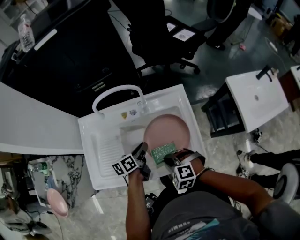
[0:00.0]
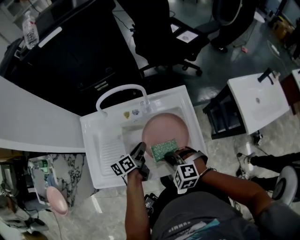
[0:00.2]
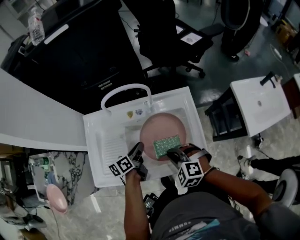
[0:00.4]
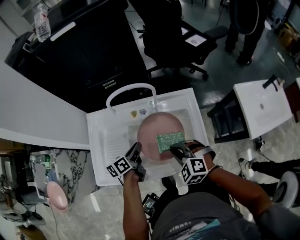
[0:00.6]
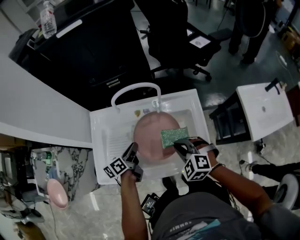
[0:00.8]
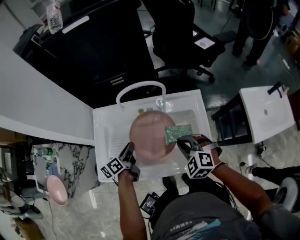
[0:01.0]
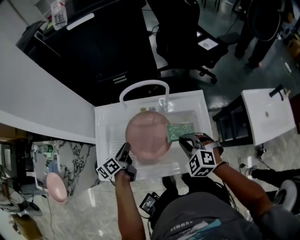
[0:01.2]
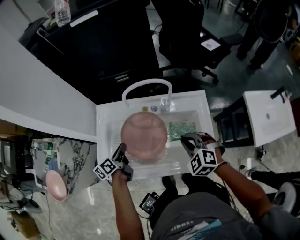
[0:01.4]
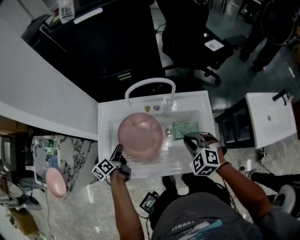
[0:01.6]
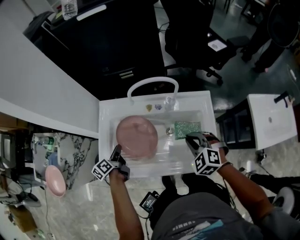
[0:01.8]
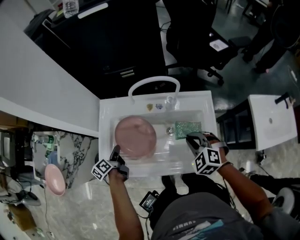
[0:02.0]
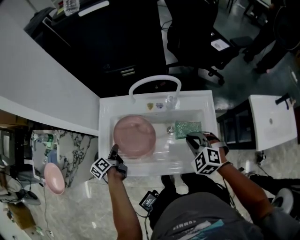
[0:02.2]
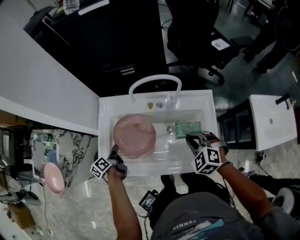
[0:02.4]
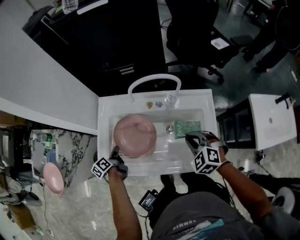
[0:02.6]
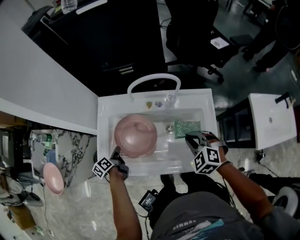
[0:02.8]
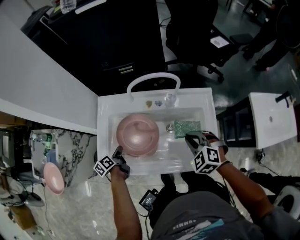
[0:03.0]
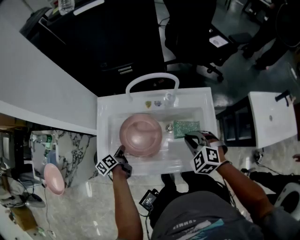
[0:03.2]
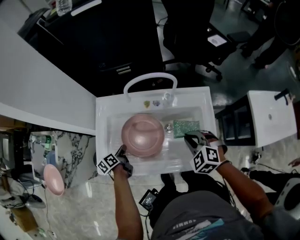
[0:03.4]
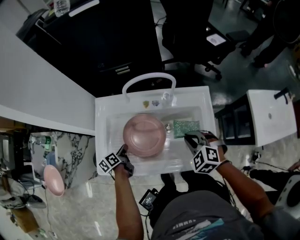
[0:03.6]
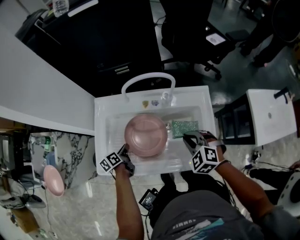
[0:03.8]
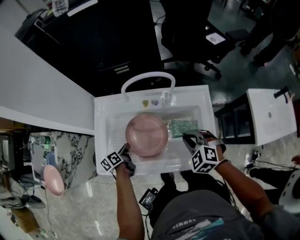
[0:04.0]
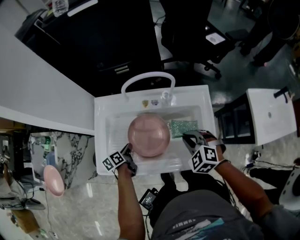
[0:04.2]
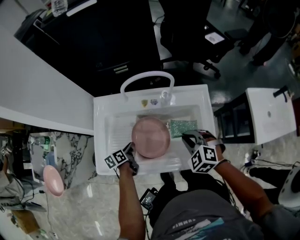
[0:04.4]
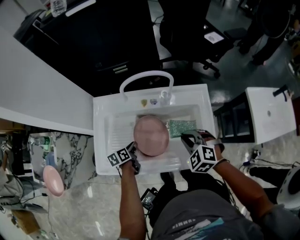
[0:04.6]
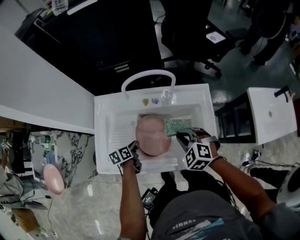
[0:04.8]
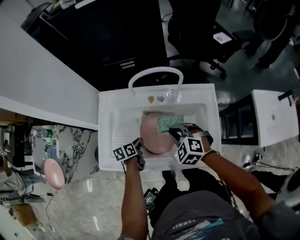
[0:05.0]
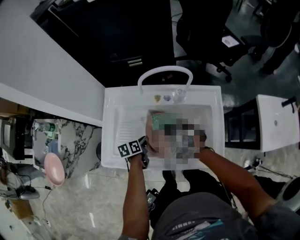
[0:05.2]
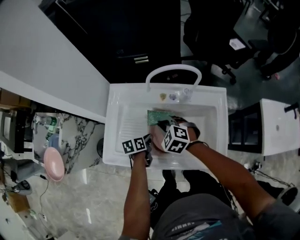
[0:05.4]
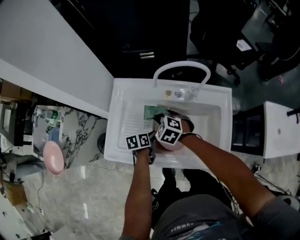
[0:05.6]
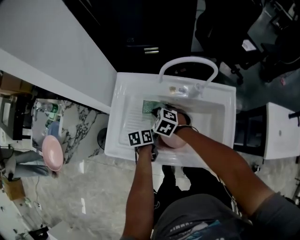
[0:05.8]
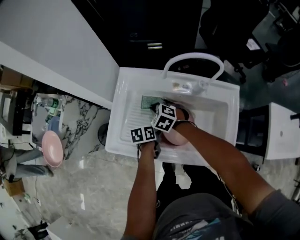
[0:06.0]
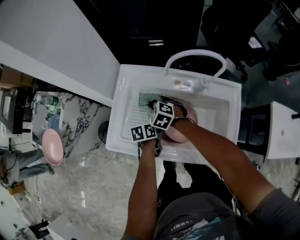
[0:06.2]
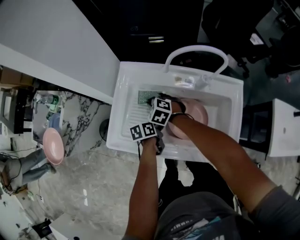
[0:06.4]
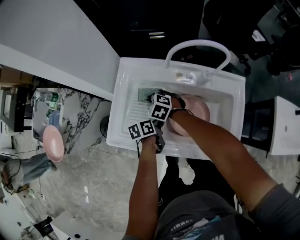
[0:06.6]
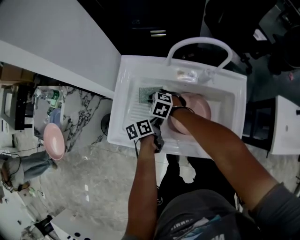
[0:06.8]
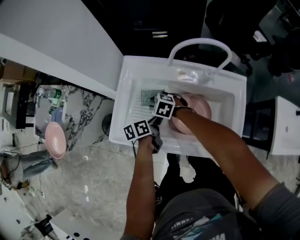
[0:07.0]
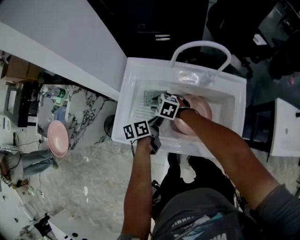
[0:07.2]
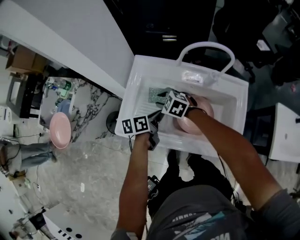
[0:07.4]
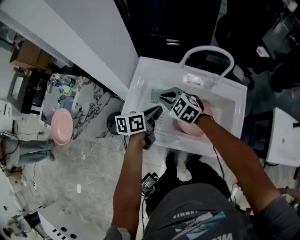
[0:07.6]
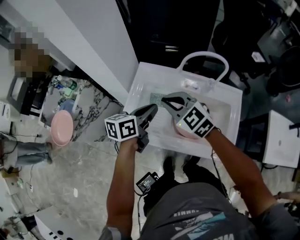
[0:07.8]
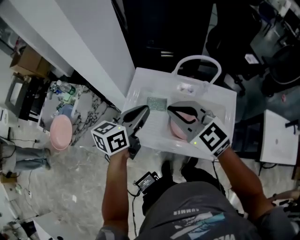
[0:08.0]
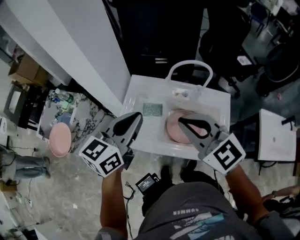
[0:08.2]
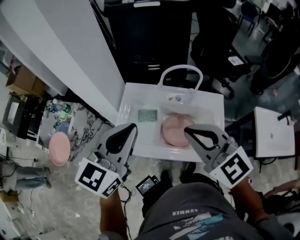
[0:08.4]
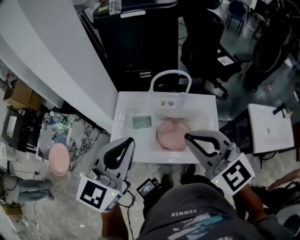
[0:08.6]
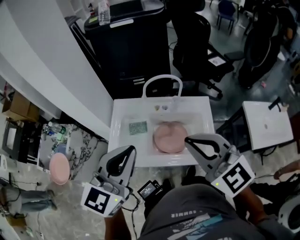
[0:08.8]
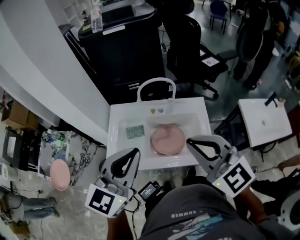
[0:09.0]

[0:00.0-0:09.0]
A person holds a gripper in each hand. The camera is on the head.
0:00.0 to 0:01.6: The right gripper is displaced forward and upward by about 15 cm; the left gripper shifts some 25 cm to the left, and rotates some 30 degrees.
0:01.6 to 0:03.0: The left gripper travels downward by roughly 10 cm.
0:03.0 to 0:04.4: The left gripper shifts about 10 cm to the right.
0:04.4 to 0:06.0: The right gripper moves to the left and forward, about 30 cm.
0:06.0 to 0:07.6: The right gripper goes some 10 cm upward, and opens, then closes again; the left gripper is displaced upward by some 15 cm, and turns by about 20 degrees.
0:07.6 to 0:09.0: The right gripper shifts about 40 cm upward, backward and to the right, and tips its fingers upward by about 30 degrees. Meanwhile the left gripper shifts approximately 35 cm upward and backward, and rolls clockwise, seen from behind, by roughly 60 degrees.

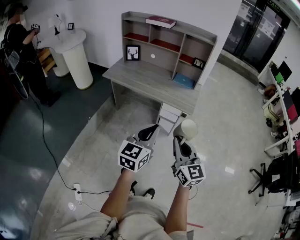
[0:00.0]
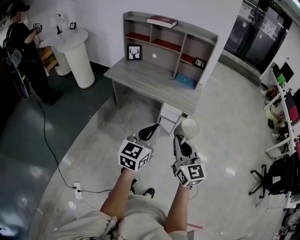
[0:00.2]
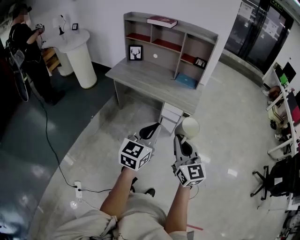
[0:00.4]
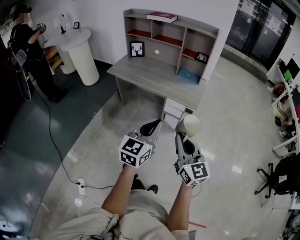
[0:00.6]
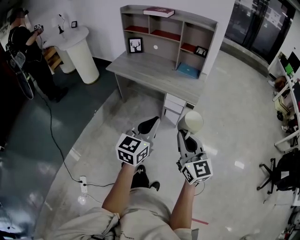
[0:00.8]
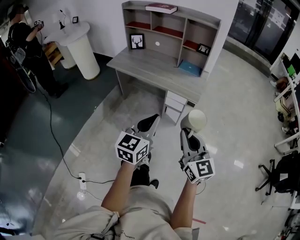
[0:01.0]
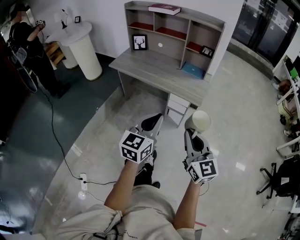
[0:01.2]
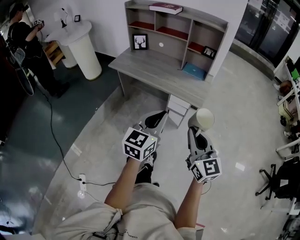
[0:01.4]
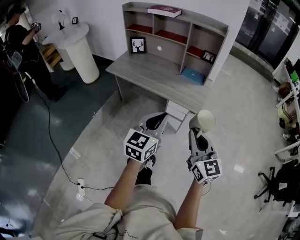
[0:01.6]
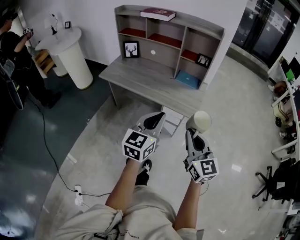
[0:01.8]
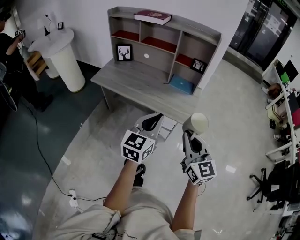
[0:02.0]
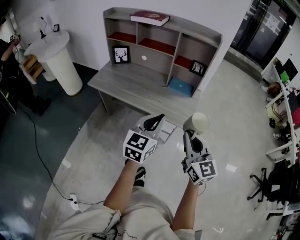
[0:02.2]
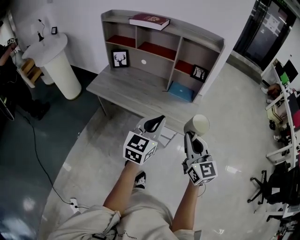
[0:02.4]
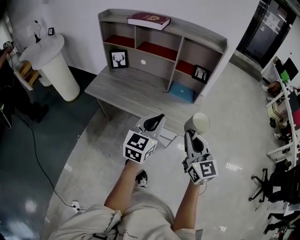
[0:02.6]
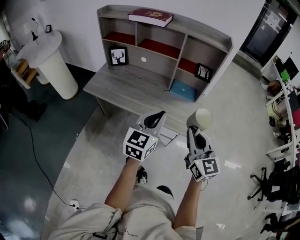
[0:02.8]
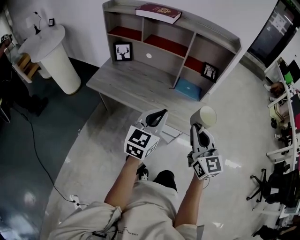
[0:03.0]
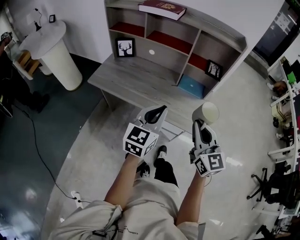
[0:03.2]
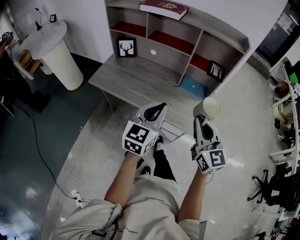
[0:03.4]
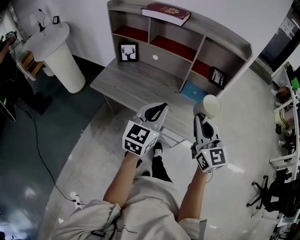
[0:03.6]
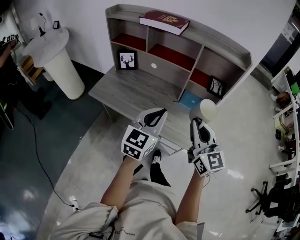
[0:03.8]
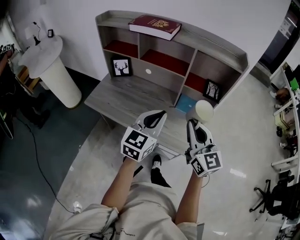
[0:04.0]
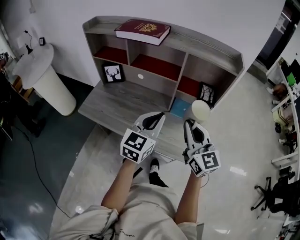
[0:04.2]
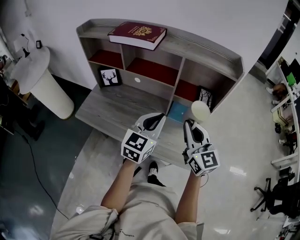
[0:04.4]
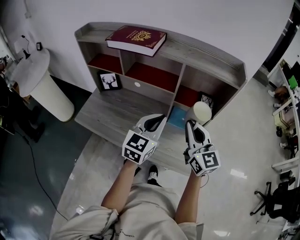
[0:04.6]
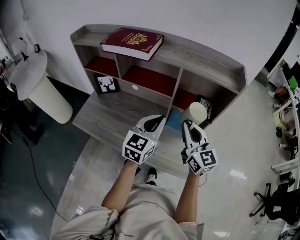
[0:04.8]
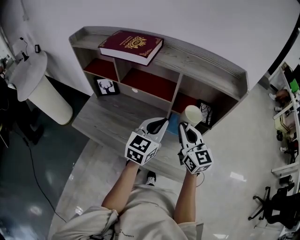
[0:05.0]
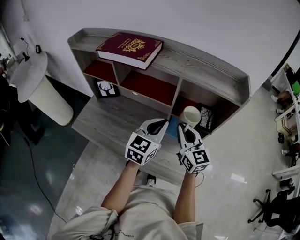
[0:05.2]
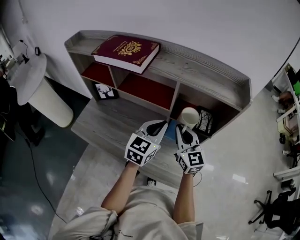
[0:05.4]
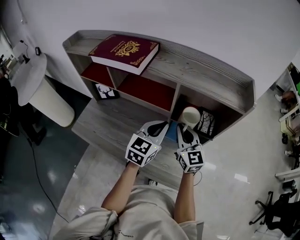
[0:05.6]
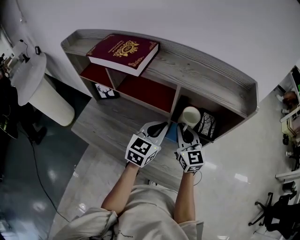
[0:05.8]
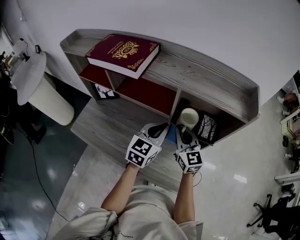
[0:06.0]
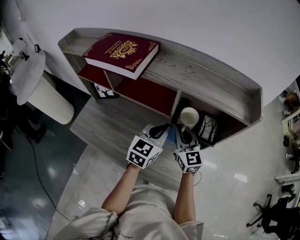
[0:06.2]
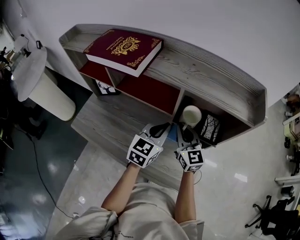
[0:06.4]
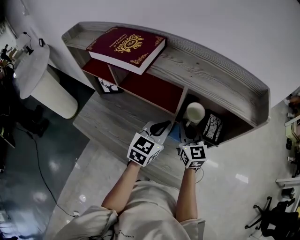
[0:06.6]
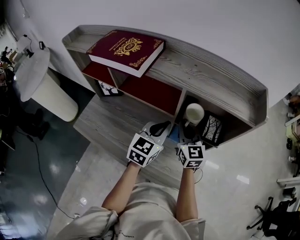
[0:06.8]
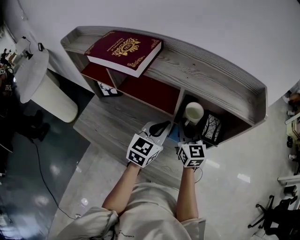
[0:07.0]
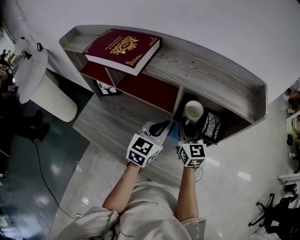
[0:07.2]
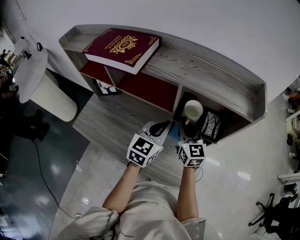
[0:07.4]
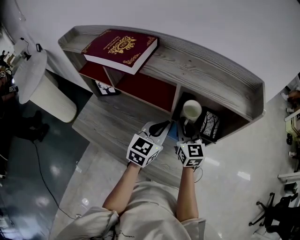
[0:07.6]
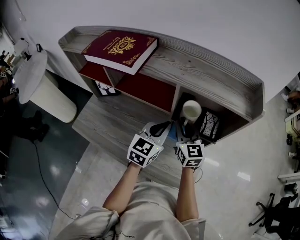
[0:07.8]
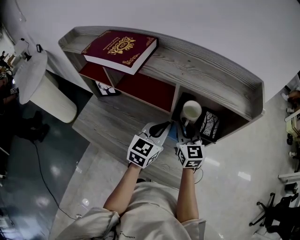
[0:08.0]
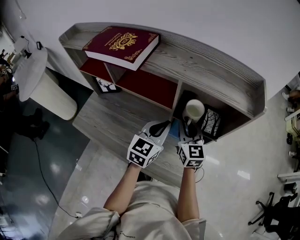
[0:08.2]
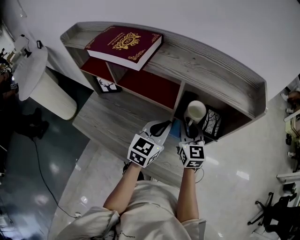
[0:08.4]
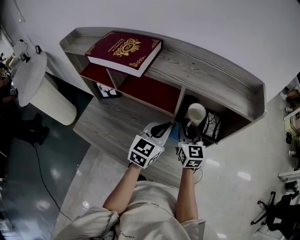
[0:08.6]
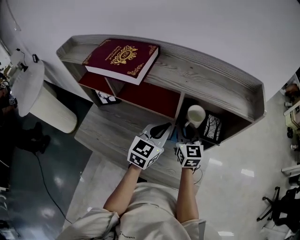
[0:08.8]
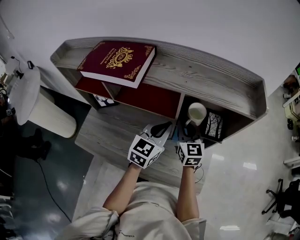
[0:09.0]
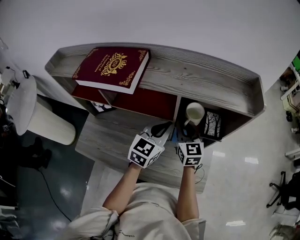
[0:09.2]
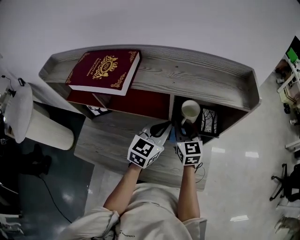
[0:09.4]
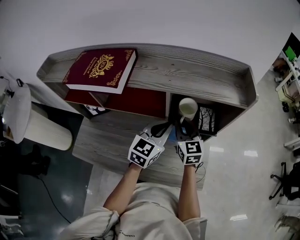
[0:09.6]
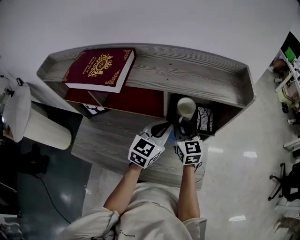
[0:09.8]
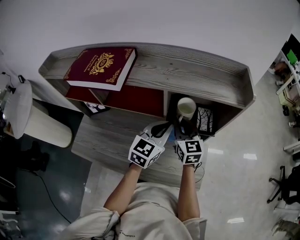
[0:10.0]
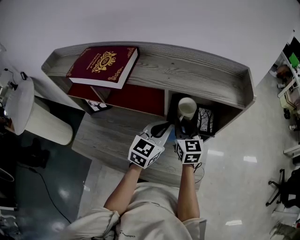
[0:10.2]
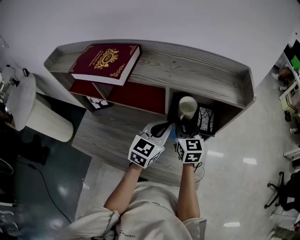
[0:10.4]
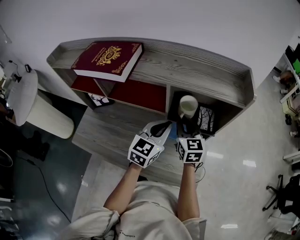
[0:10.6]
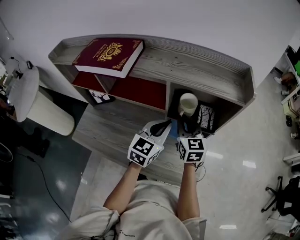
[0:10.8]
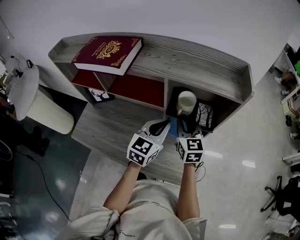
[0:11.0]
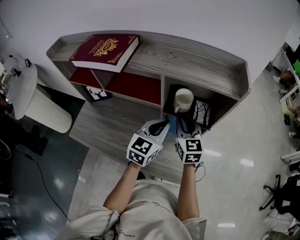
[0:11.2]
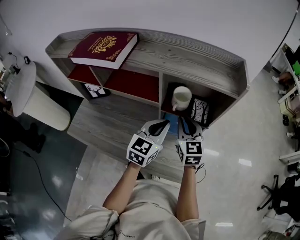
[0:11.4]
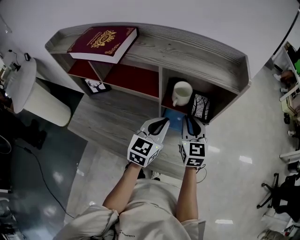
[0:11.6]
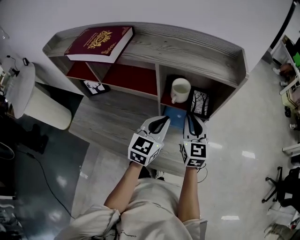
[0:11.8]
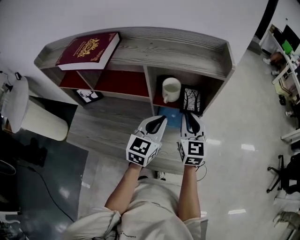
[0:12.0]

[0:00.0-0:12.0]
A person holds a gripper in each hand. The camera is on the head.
0:00.0 to 0:01.6: The grippers both shift forward and to the right by about 10 cm.
0:01.6 to 0:03.0: Both grippers move forward, about 25 cm.
0:03.0 to 0:04.4: Both grippers move forward, about 20 cm.
0:04.4 to 0:06.0: The right gripper is displaced forward and downward by some 25 cm; the left gripper travels forward by approximately 15 cm.
0:06.0 to 0:10.4: The grippers make only small movements.
0:10.4 to 0:12.0: The left gripper moves some 5 cm. The right gripper travels to the right and backward by about 10 cm.

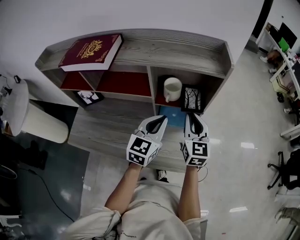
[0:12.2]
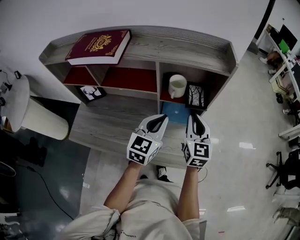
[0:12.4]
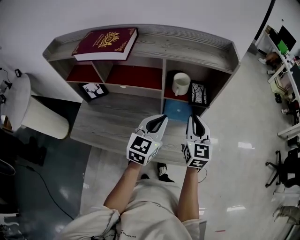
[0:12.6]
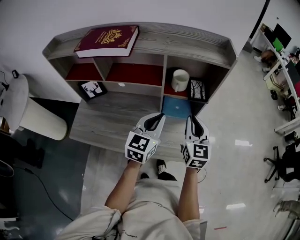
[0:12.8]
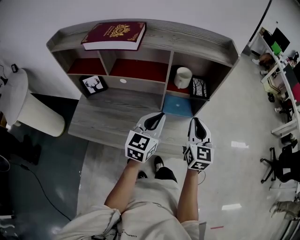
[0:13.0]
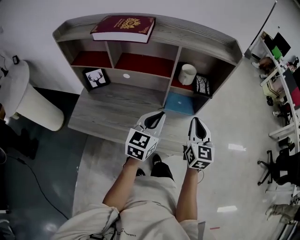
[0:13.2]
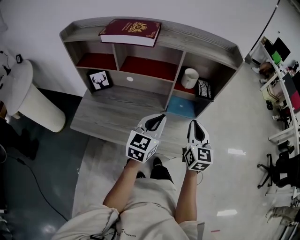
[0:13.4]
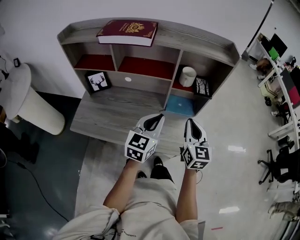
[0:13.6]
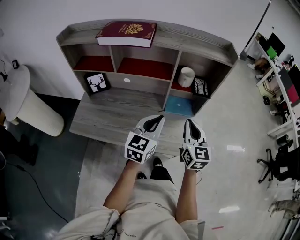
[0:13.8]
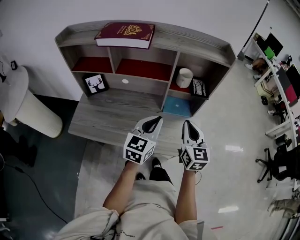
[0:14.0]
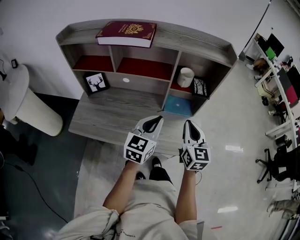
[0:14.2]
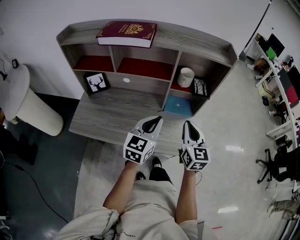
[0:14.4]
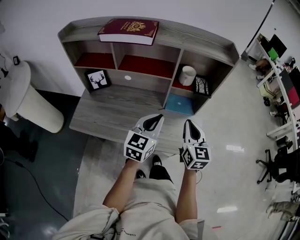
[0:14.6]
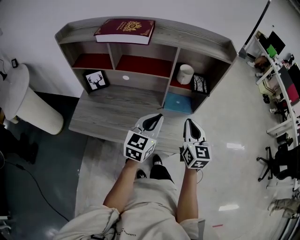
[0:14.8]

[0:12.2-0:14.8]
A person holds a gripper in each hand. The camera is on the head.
0:12.2 to 0:13.4: The left gripper is displaced backward and to the left by approximately 15 cm, while the right gripper moves backward, about 15 cm.
0:13.4 to 0:14.8: There are only small adjustments of the grippers.
